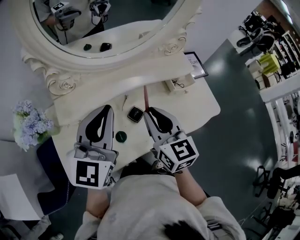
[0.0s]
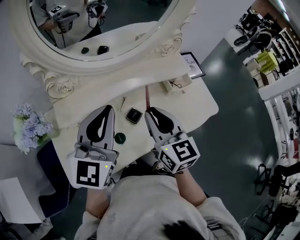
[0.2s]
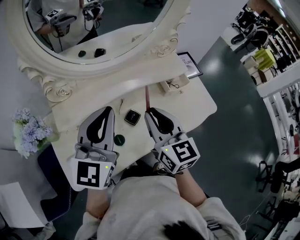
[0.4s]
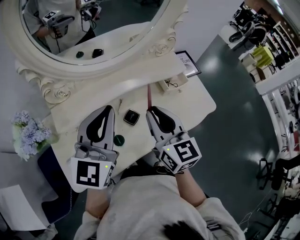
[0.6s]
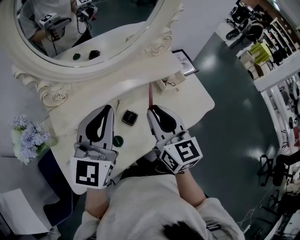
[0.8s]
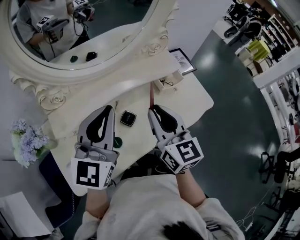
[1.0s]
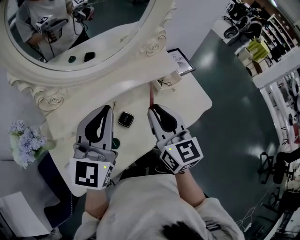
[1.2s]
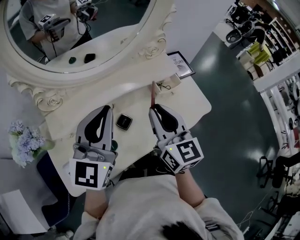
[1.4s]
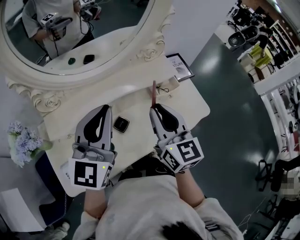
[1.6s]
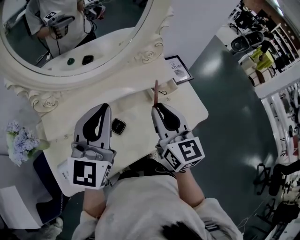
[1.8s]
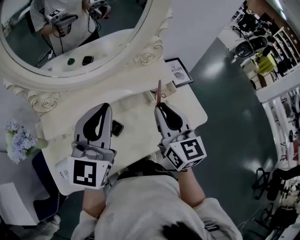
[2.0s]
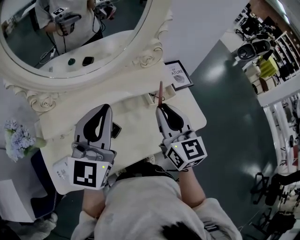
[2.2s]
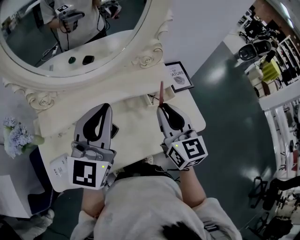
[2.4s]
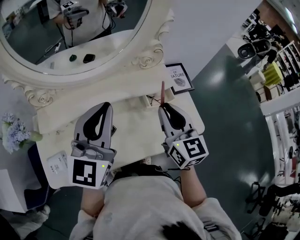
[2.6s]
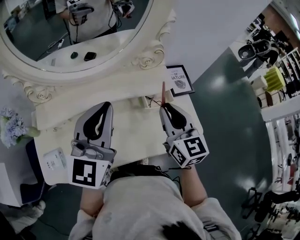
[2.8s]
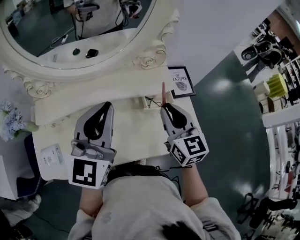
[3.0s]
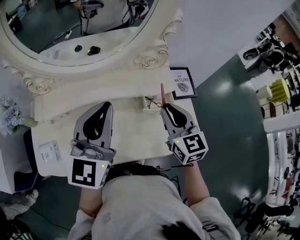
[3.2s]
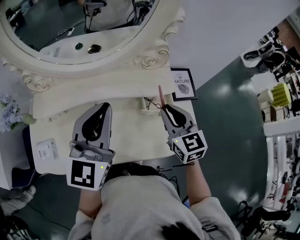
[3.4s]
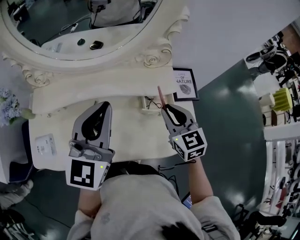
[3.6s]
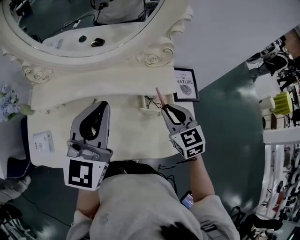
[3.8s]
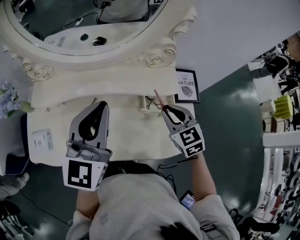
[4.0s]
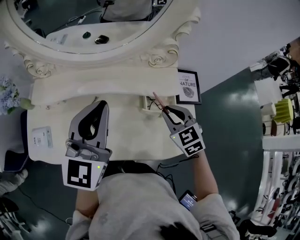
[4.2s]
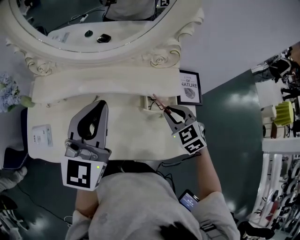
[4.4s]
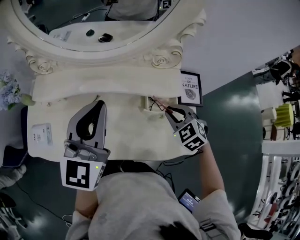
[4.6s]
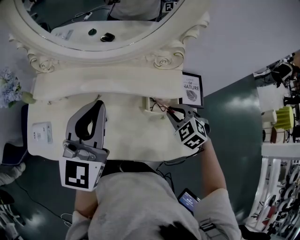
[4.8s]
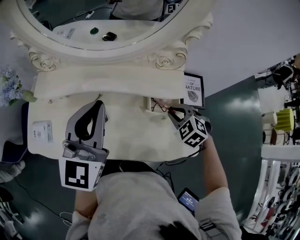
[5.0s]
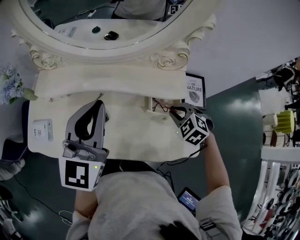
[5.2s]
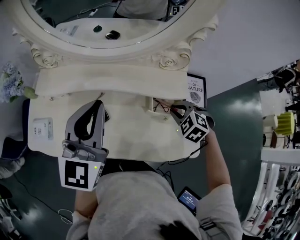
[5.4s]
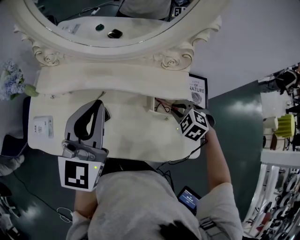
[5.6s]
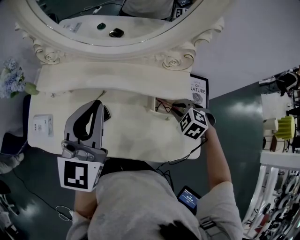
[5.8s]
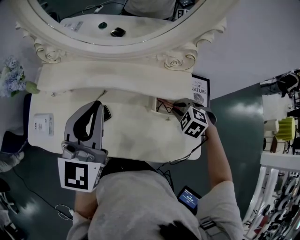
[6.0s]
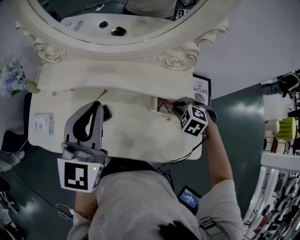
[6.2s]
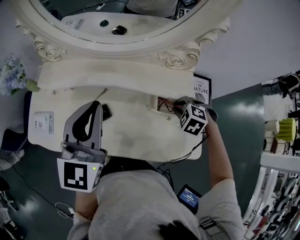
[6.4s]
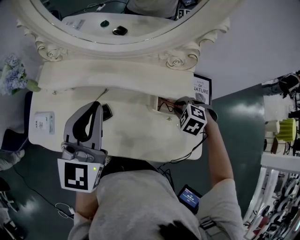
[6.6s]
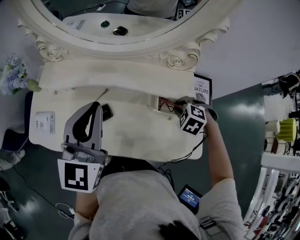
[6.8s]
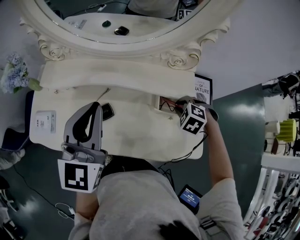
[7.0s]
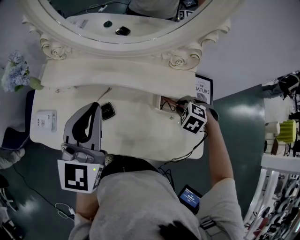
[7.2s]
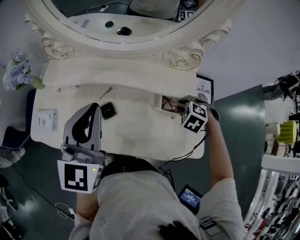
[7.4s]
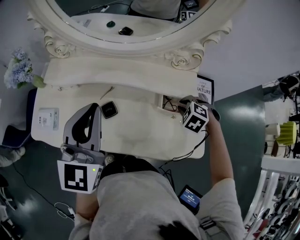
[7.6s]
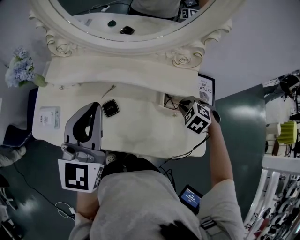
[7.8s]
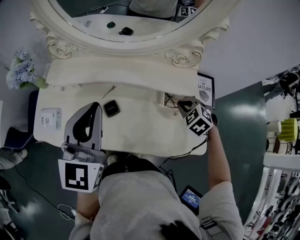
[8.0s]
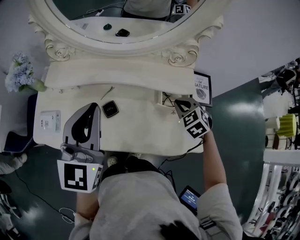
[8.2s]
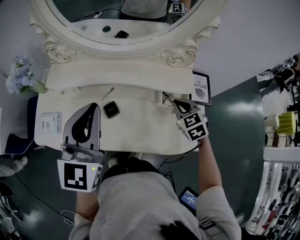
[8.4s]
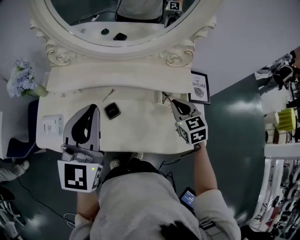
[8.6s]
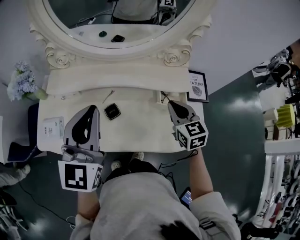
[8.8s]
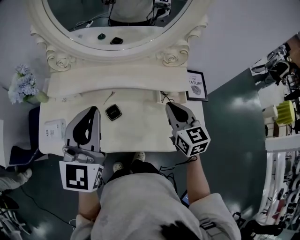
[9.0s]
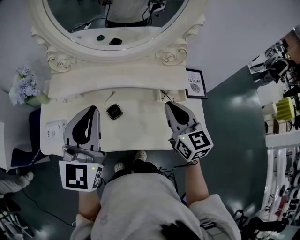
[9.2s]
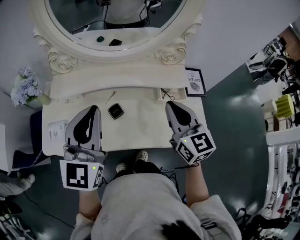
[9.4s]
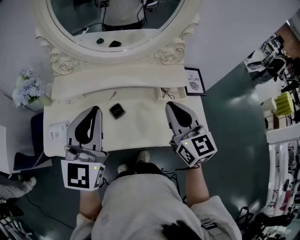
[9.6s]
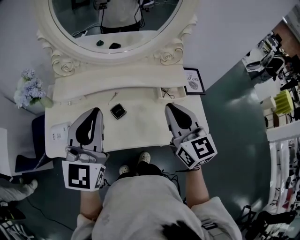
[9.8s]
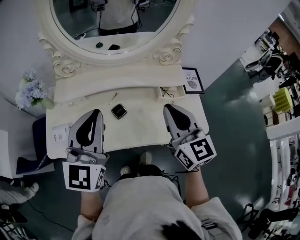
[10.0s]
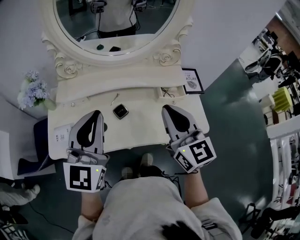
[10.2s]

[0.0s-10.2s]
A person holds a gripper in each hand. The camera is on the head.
0.0s to 1.4s: Both grippers move to the right, some 5 cm.
1.4s to 3.0s: The right gripper moves to the right and forward, some 15 cm, while the left gripper moves to the right, roughly 10 cm.
3.0s to 4.4s: The right gripper shifts approximately 10 cm downward, and turns by approximately 50 degrees.
4.4s to 5.8s: The right gripper travels downward by some 5 cm, and rotates about 30 degrees.
5.8s to 7.2s: The grippers make only small movements.
7.2s to 8.8s: The right gripper moves upward and to the left, roughly 15 cm, and angles its fingers upward, by roughly 50 degrees; the left gripper ends up some 5 cm from where it was.
8.8s to 10.2s: The left gripper moves backward, some 5 cm; the right gripper shifts some 20 cm upward, backward and to the left, and changes its angle by some 20 degrees.

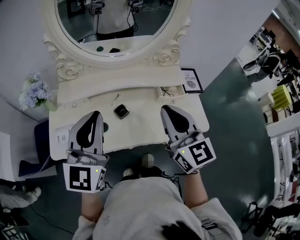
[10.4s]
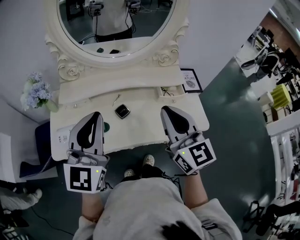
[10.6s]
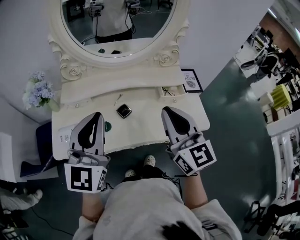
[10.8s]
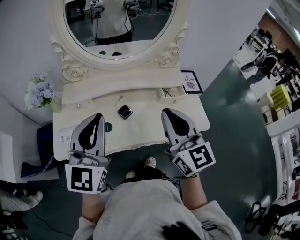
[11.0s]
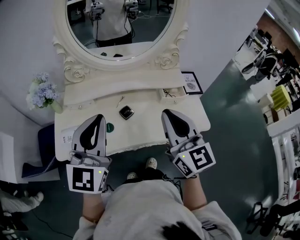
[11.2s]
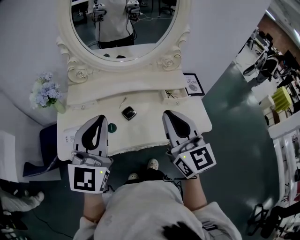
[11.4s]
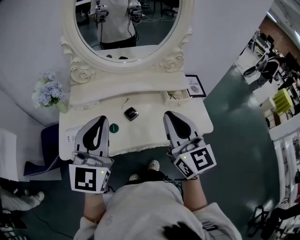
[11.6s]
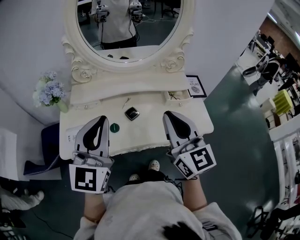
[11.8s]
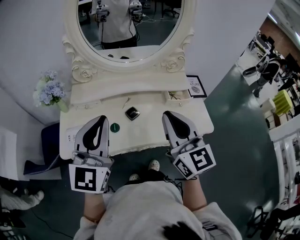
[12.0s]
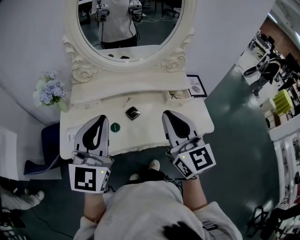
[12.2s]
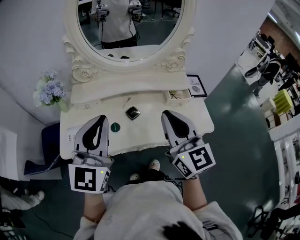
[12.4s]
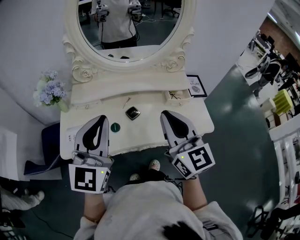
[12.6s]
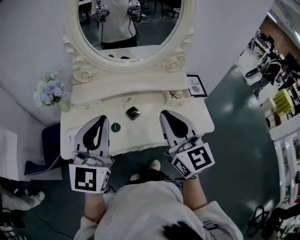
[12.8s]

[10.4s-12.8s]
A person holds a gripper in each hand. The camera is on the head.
10.4s to 11.6s: The right gripper shifts by approximately 5 cm. Meanwhile the left gripper ends up about 5 cm from where it was.
11.6s to 12.8s: The grippers move only a little.

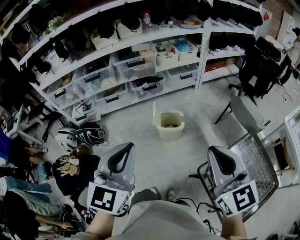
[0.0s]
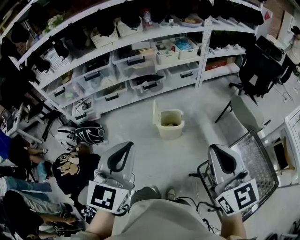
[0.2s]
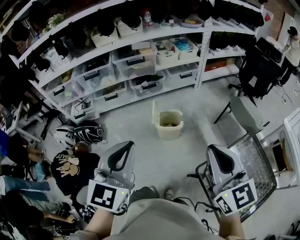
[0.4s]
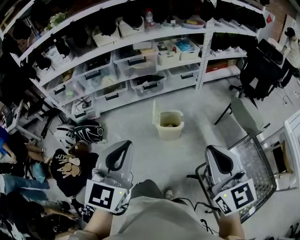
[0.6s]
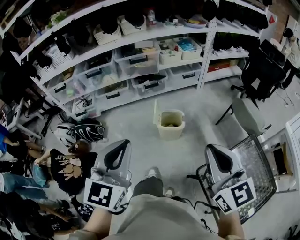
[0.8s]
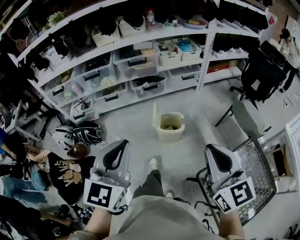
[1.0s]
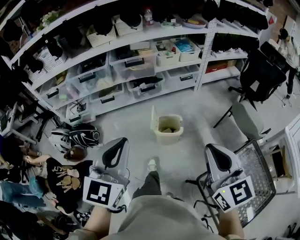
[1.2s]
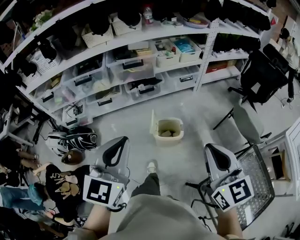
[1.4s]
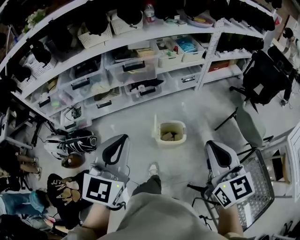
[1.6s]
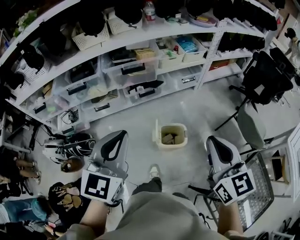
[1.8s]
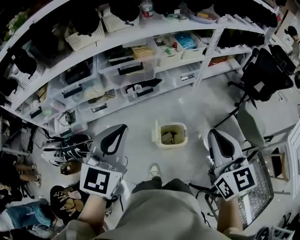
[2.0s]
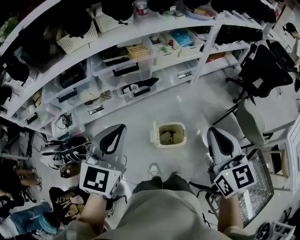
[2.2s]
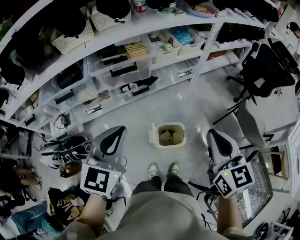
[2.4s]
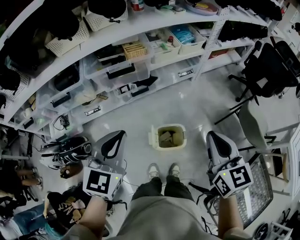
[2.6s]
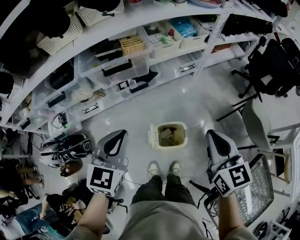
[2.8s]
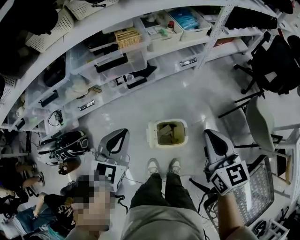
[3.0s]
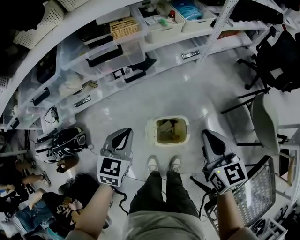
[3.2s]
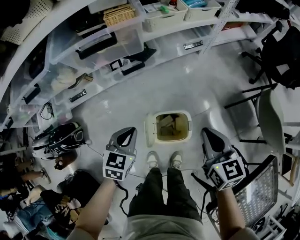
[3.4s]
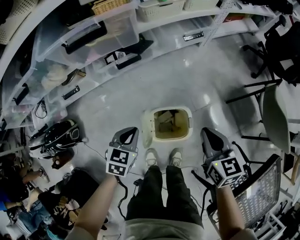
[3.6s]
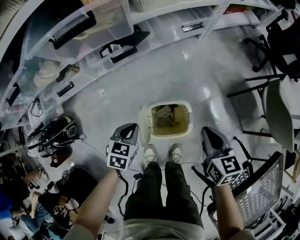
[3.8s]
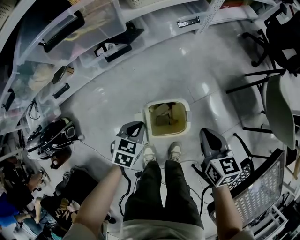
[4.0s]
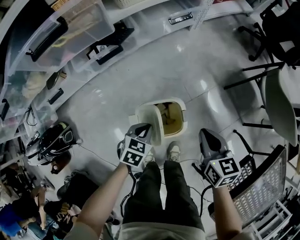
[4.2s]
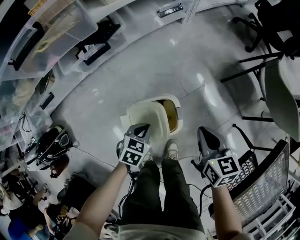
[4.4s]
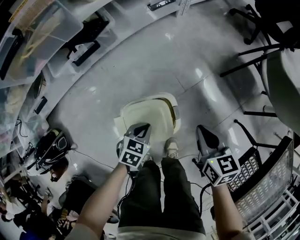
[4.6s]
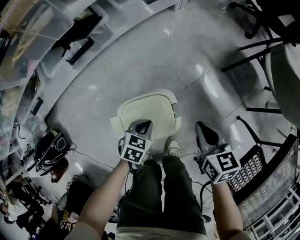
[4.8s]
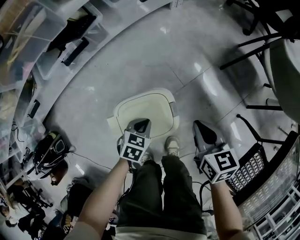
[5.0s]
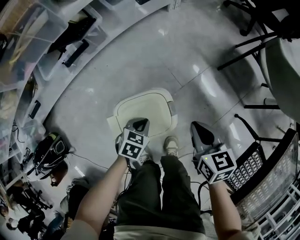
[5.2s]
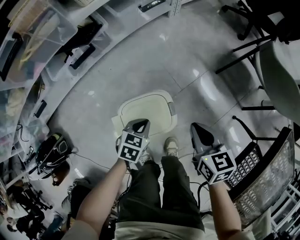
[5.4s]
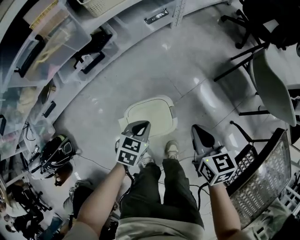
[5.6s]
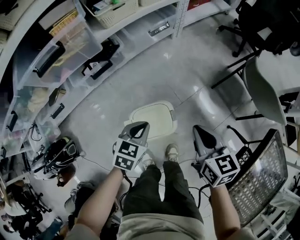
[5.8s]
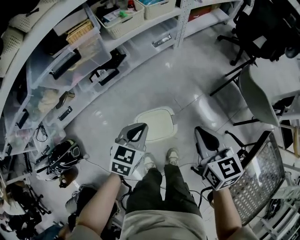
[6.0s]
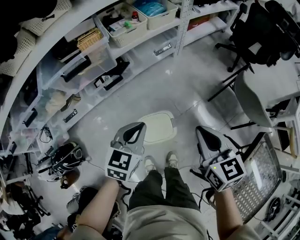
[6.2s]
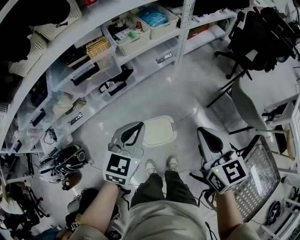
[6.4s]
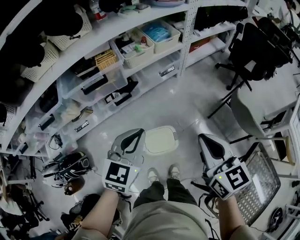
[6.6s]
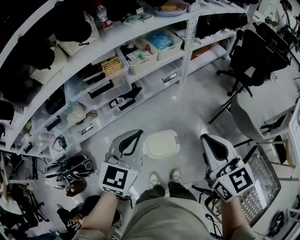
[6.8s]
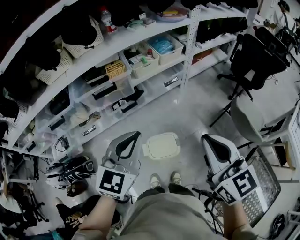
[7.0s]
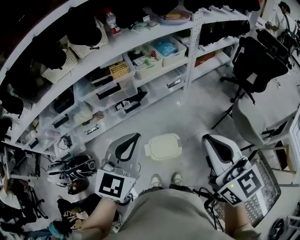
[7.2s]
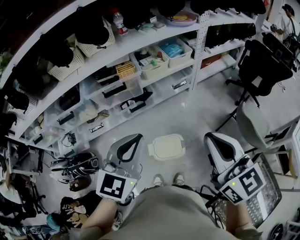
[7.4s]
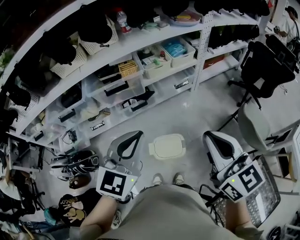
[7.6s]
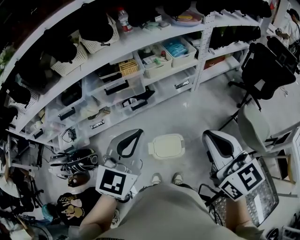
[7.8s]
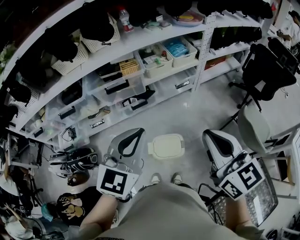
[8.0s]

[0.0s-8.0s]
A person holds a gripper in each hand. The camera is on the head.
0.0s to 1.6s: Both grippers move forward, about 25 cm.
1.6s to 3.2s: The left gripper goes some 40 cm downward and forward, and swivels about 30 degrees. Meanwhile the right gripper travels forward and downward by some 35 cm.
3.2s to 4.8s: The right gripper shifts roughly 35 cm downward, and swivels some 20 degrees, while the left gripper shifts roughly 50 cm downward and to the right, and changes its angle by roughly 30 degrees.
4.8s to 6.4s: Both grippers move upward, approximately 50 cm. The right gripper swivels approximately 20 degrees, while the left gripper rotates roughly 40 degrees.
6.4s to 8.0s: Both grippers travel together upward, approximately 20 cm.

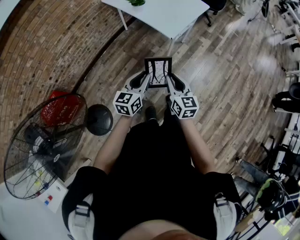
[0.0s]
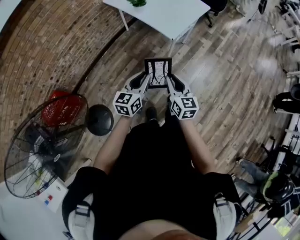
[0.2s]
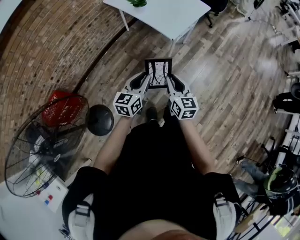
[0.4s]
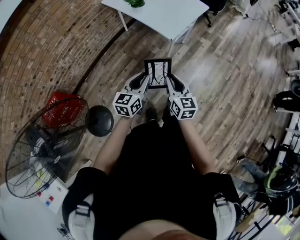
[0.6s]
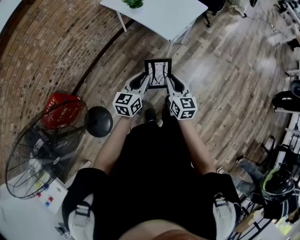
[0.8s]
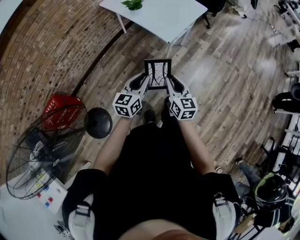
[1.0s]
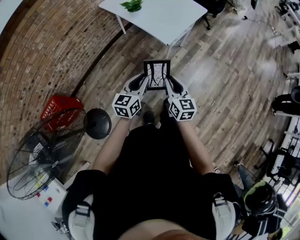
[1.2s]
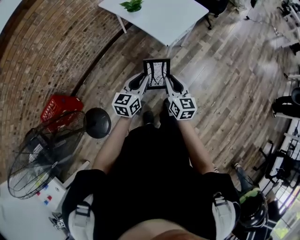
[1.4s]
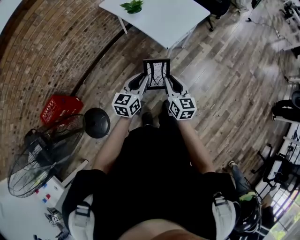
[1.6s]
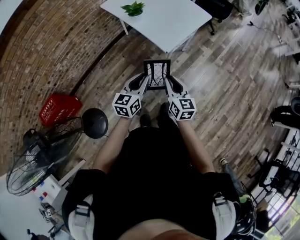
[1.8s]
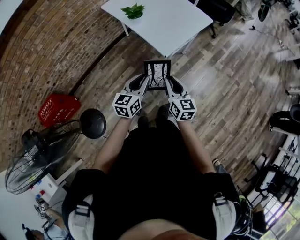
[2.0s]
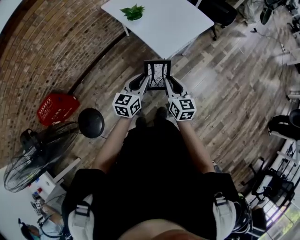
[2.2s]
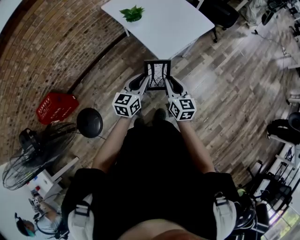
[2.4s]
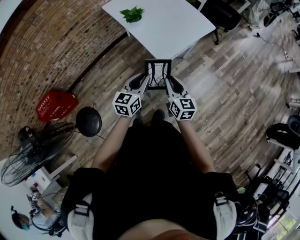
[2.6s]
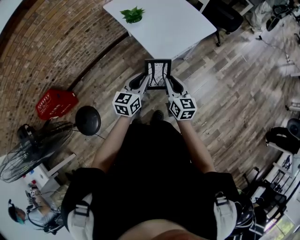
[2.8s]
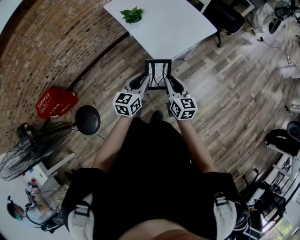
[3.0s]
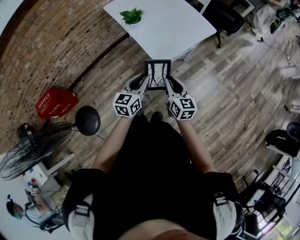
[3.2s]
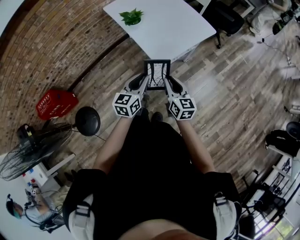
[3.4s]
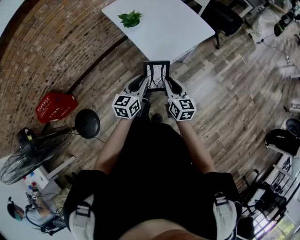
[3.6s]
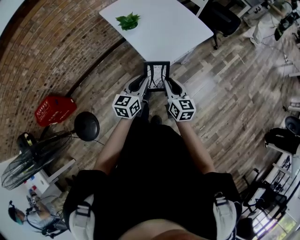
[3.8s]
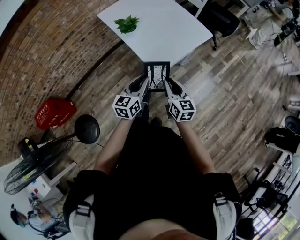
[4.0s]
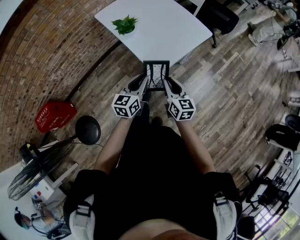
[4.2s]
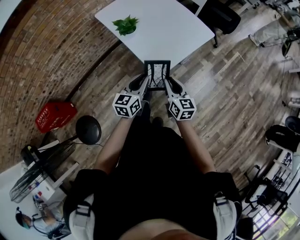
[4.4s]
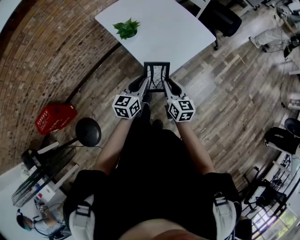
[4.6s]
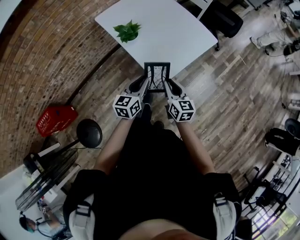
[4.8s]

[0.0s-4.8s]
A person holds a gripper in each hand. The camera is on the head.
0.0s to 1.6s: The two grippers go about 10 cm forward.
1.6s to 3.2s: Both grippers travel together forward and to the right, roughly 15 cm.
3.2s to 4.8s: Both grippers travel together forward, approximately 15 cm.
